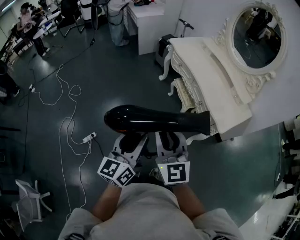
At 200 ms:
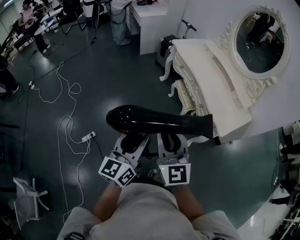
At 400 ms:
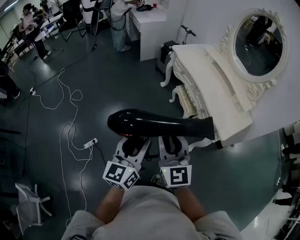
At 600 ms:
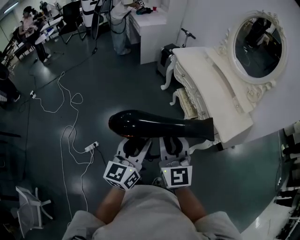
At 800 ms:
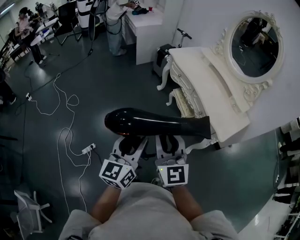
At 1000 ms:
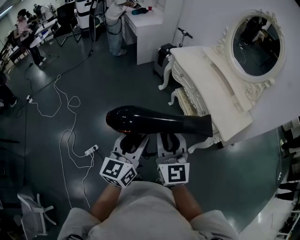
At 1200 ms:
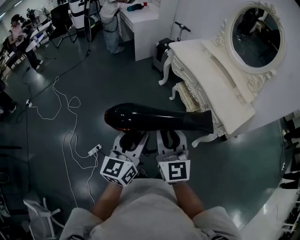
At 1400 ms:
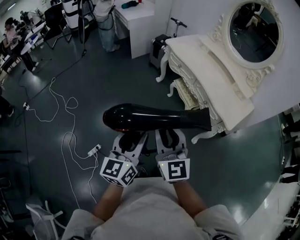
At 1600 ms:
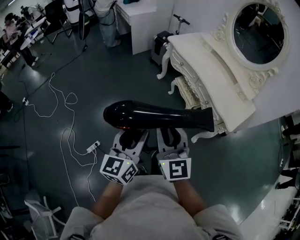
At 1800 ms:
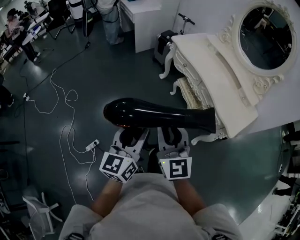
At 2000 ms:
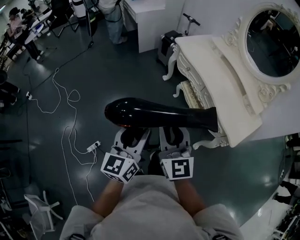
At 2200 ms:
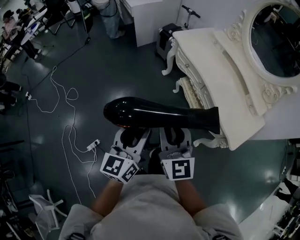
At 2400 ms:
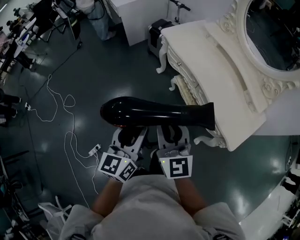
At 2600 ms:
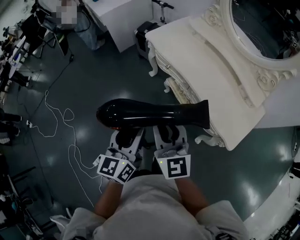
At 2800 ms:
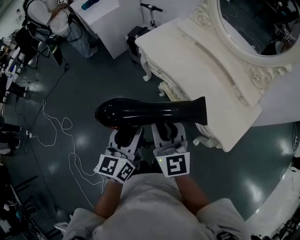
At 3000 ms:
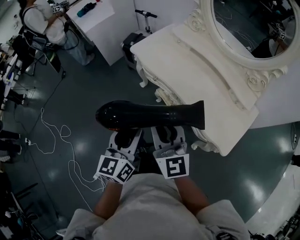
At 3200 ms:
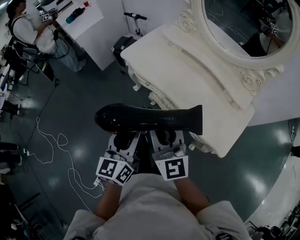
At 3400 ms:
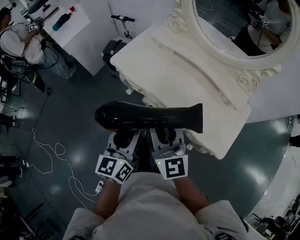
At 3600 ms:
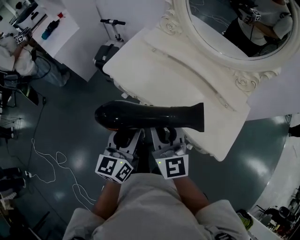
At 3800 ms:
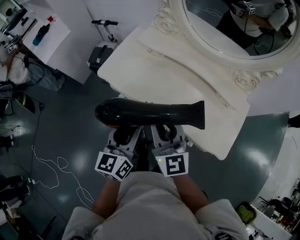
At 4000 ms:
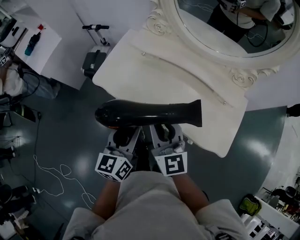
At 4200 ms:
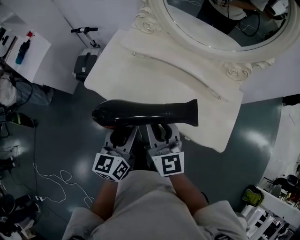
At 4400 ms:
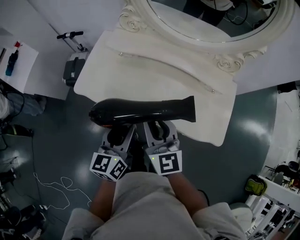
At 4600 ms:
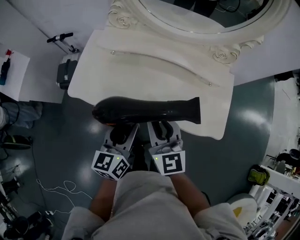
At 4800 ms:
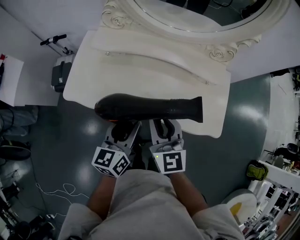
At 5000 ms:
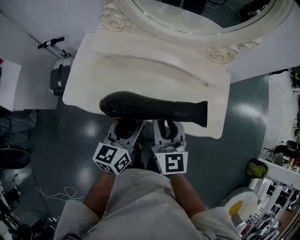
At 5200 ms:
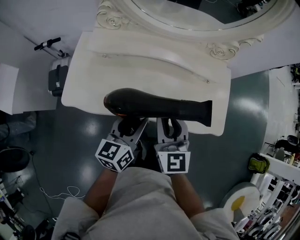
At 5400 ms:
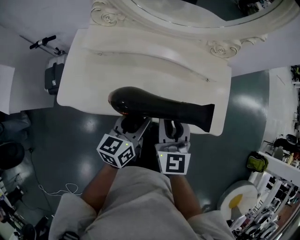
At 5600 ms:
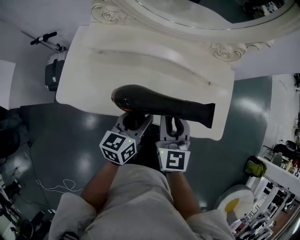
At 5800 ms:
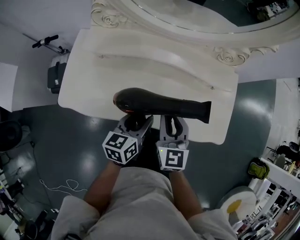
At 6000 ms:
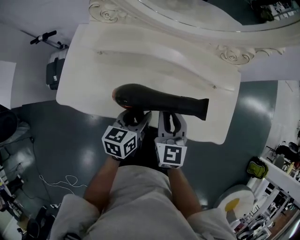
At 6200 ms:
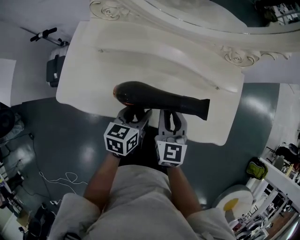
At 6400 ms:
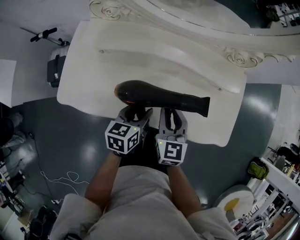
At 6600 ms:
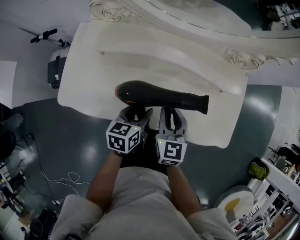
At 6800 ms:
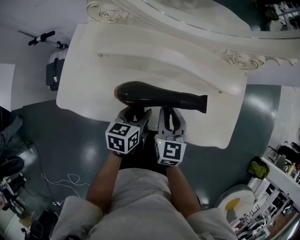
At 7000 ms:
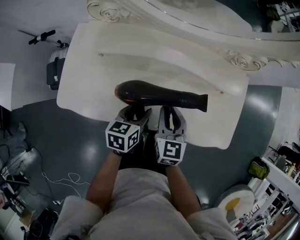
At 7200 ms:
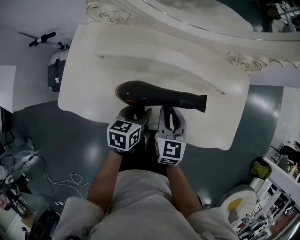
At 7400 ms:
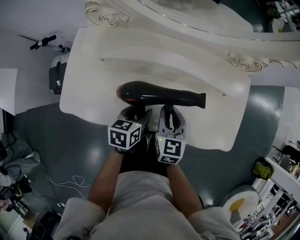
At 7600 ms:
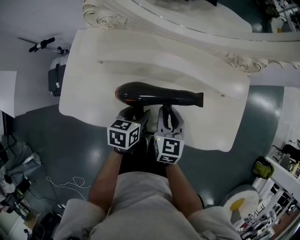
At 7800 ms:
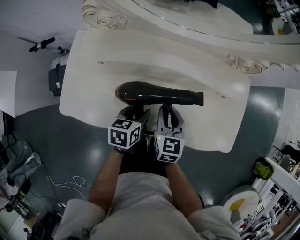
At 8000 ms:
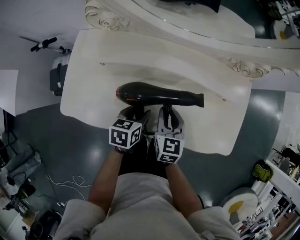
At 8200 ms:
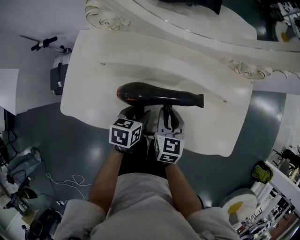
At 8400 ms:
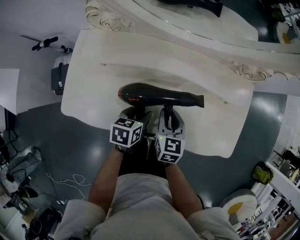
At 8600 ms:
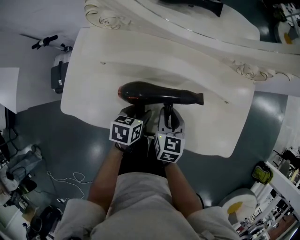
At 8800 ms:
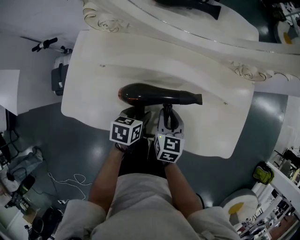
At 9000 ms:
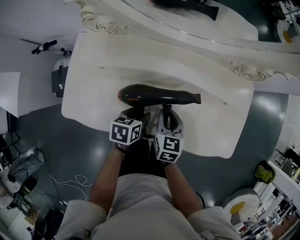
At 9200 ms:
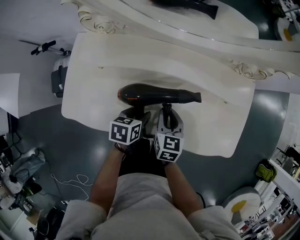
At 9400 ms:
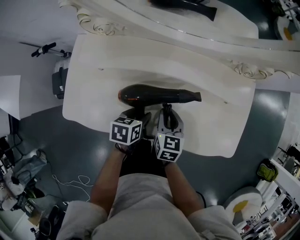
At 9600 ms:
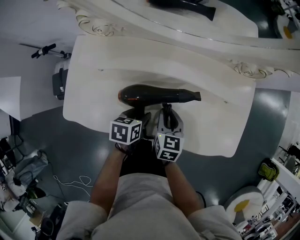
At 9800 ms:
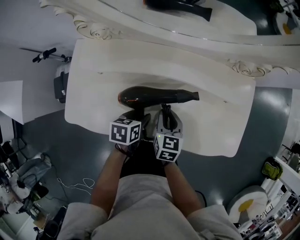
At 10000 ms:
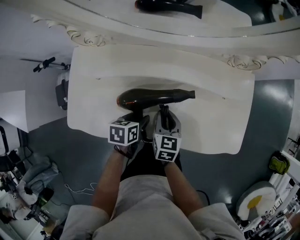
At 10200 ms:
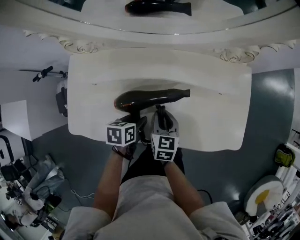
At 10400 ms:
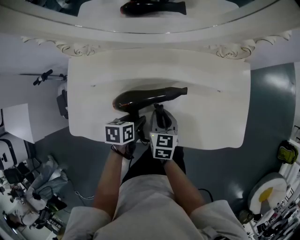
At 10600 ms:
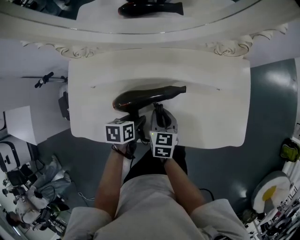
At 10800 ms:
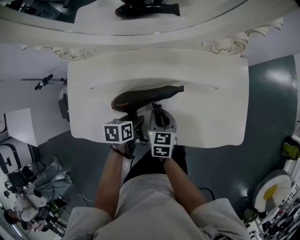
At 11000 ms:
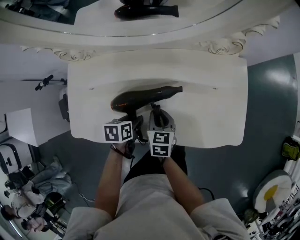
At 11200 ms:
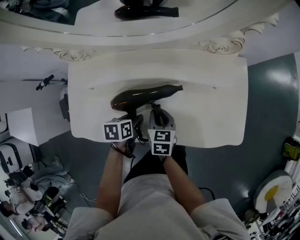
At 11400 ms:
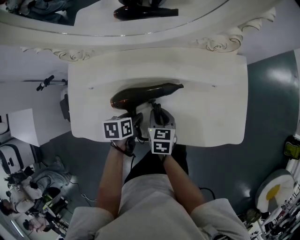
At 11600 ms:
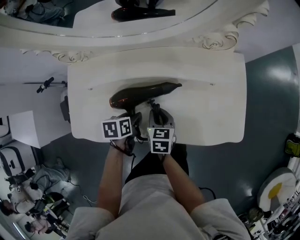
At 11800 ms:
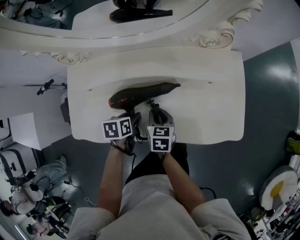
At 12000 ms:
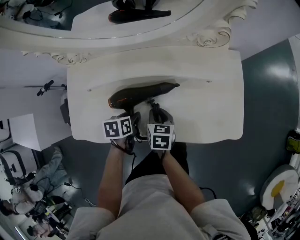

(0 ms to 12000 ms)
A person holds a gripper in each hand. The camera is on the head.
0 ms - 1600 ms: The grippers both shift to the left and forward by some 10 cm.
1600 ms - 3000 ms: Both grippers move forward and to the right, some 40 cm.
3000 ms - 4400 ms: The left gripper ends up roughly 30 cm from where it was, and turns by about 30 degrees; the right gripper moves some 25 cm, and swivels roughly 30 degrees.
4400 ms - 6000 ms: The grippers both shift downward, forward and to the right by about 20 cm. The left gripper changes its angle by approximately 30 degrees; the right gripper swivels about 20 degrees.
6000 ms - 7600 ms: Both grippers travel together downward, approximately 5 cm.
7600 ms - 10400 ms: The grippers stay close to where they were, moving slightly.
10400 ms - 12000 ms: The grippers move only a little.

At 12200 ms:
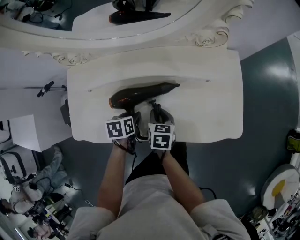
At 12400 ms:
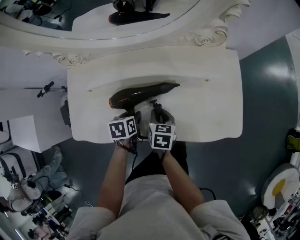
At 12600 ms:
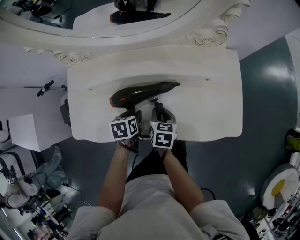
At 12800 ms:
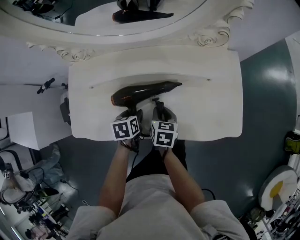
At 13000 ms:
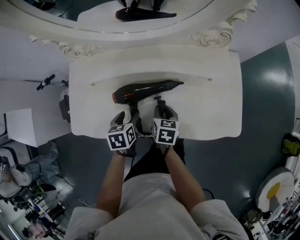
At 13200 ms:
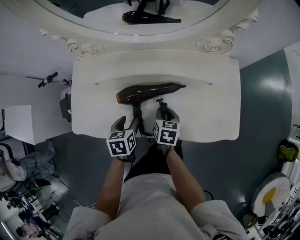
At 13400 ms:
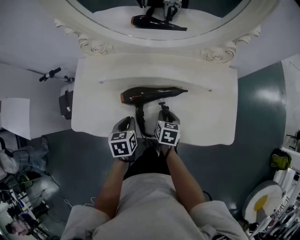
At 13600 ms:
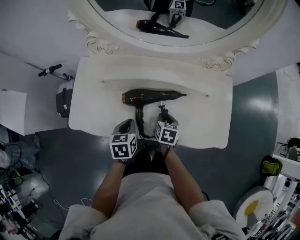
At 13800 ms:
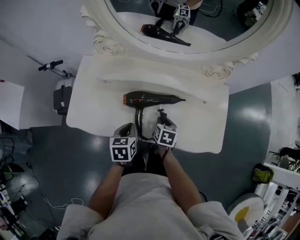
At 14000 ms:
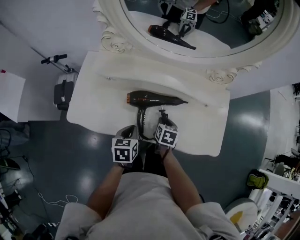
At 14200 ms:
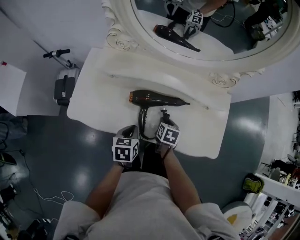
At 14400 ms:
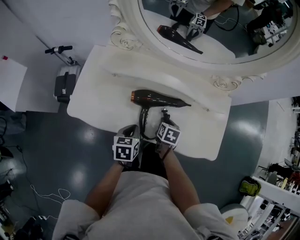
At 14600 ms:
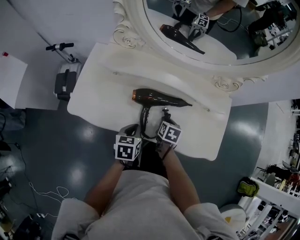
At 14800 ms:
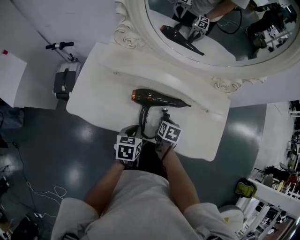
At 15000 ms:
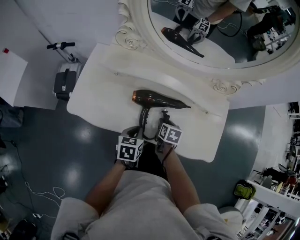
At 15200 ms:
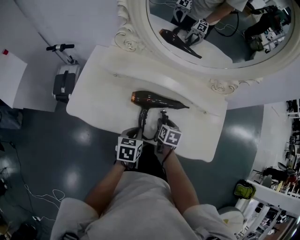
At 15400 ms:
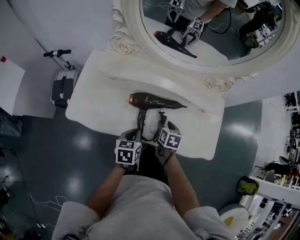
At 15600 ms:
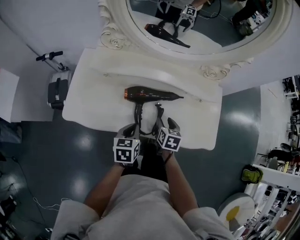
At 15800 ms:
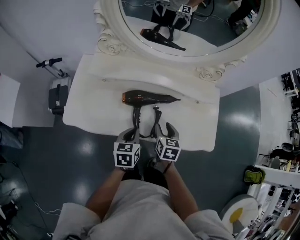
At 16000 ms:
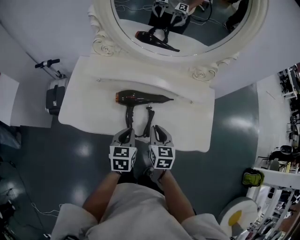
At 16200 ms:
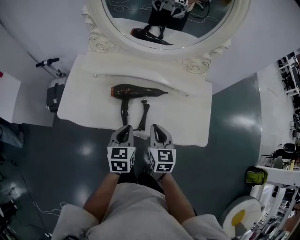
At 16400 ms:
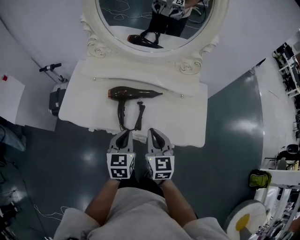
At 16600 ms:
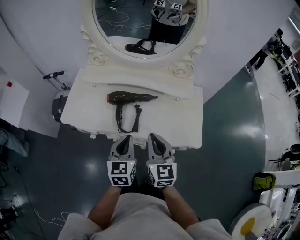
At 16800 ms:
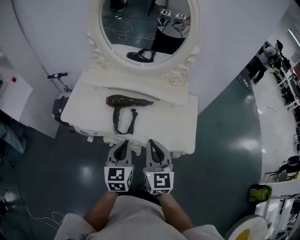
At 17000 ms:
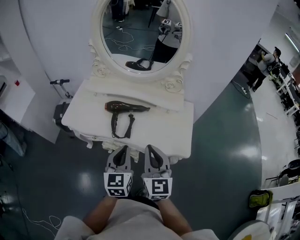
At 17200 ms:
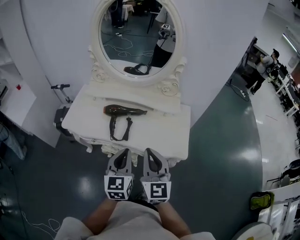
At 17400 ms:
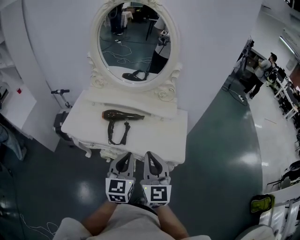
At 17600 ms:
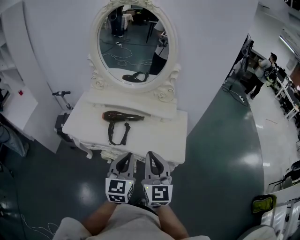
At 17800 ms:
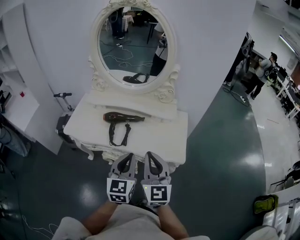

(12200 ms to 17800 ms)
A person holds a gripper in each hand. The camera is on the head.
12200 ms - 13600 ms: The left gripper goes approximately 10 cm upward, turns by some 20 degrees, and closes its fingers.
13600 ms - 15000 ms: There are only small adjustments of the grippers.
15000 ms - 16400 ms: The right gripper travels upward and backward by roughly 25 cm, points its fingers roughly 40 degrees further upward, and closes up. The left gripper is displaced upward, to the right and backward by about 15 cm, and swivels some 30 degrees.
16400 ms - 17800 ms: The left gripper goes roughly 25 cm backward, upward and to the right, and changes its angle by roughly 20 degrees. The right gripper heads upward, backward and to the right, covering approximately 25 cm, and turns by about 20 degrees.

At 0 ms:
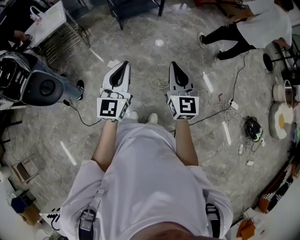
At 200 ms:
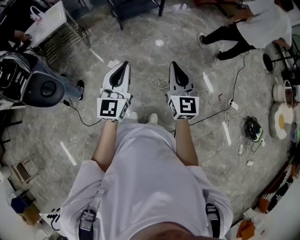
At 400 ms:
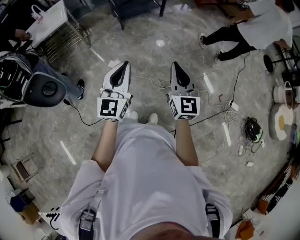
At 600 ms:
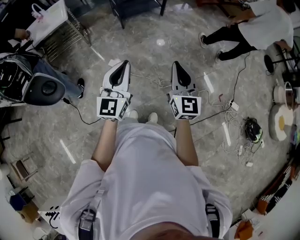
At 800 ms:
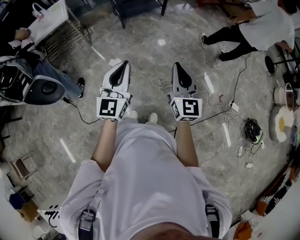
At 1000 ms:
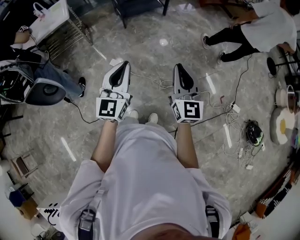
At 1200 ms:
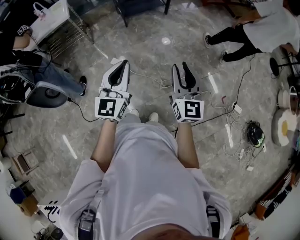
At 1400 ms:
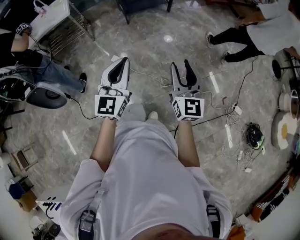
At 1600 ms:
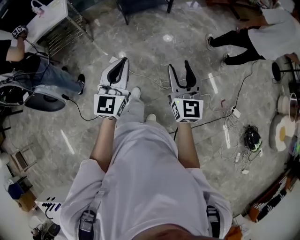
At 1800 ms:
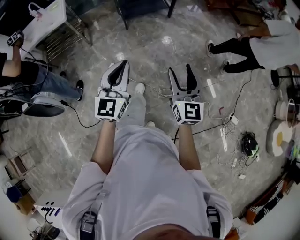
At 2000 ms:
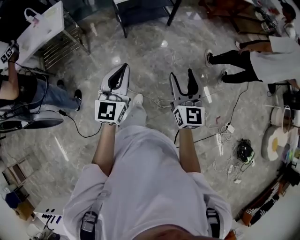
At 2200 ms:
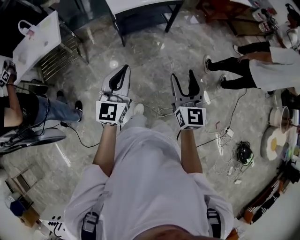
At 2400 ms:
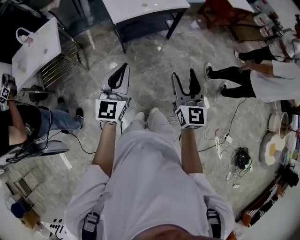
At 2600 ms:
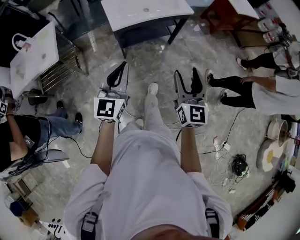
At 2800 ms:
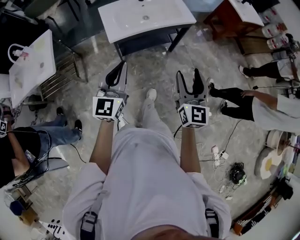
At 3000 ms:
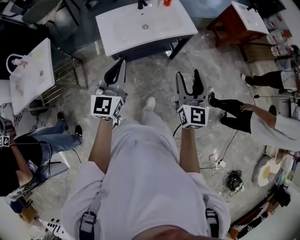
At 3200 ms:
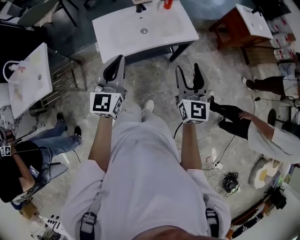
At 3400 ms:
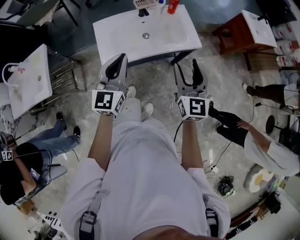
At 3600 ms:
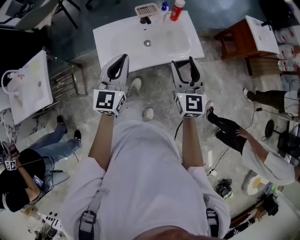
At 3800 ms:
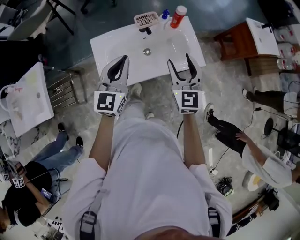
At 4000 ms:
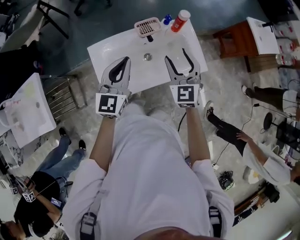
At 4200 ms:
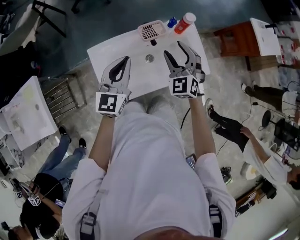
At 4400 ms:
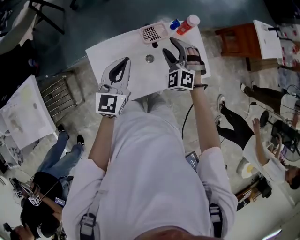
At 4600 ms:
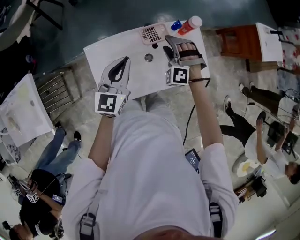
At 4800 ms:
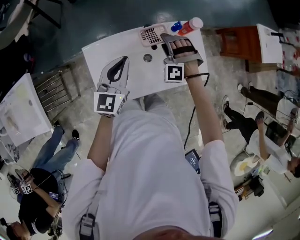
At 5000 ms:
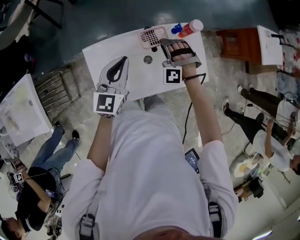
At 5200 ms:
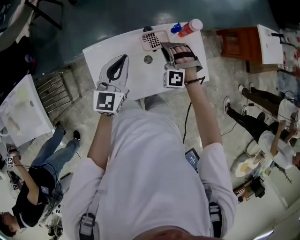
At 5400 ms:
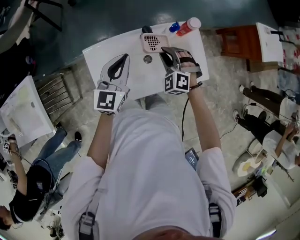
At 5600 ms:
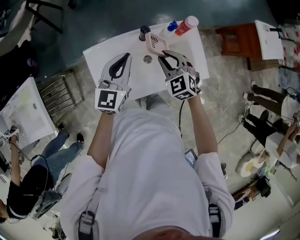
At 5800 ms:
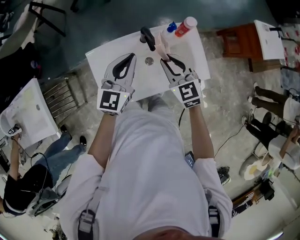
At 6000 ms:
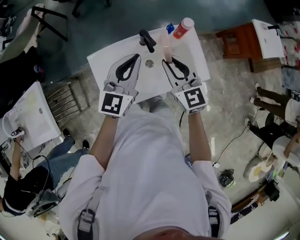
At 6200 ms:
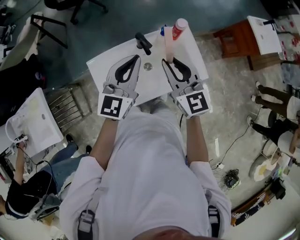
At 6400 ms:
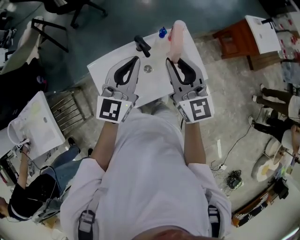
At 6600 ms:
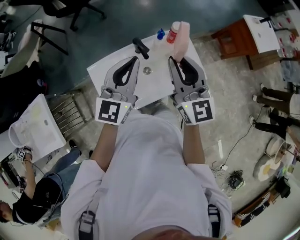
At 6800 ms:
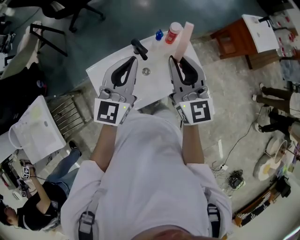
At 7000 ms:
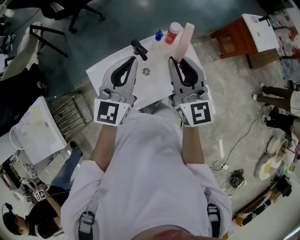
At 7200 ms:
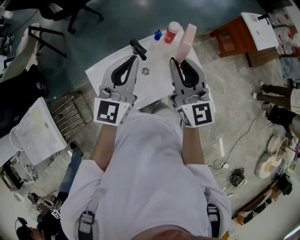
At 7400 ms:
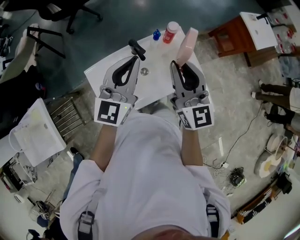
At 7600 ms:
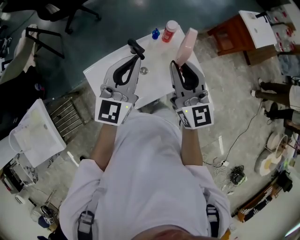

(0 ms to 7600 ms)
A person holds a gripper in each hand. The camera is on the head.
0 ms - 1600 ms: Both grippers travel together forward, approximately 10 cm. The right gripper opens up.
1600 ms - 3000 ms: Both grippers are carried forward, about 70 cm.
3000 ms - 4600 ms: The pair of grippers is taken forward, about 50 cm. The right gripper rolls counterclockwise, seen from behind, by about 80 degrees.
4600 ms - 6000 ms: The left gripper goes some 10 cm upward and to the right; the right gripper is displaced upward and backward by approximately 15 cm, twists approximately 70 degrees clockwise, seen from behind, and closes its fingers.
6000 ms - 7600 ms: The right gripper heads upward and to the right, covering approximately 10 cm, and turns by roughly 30 degrees, while the left gripper goes approximately 5 cm upward.
